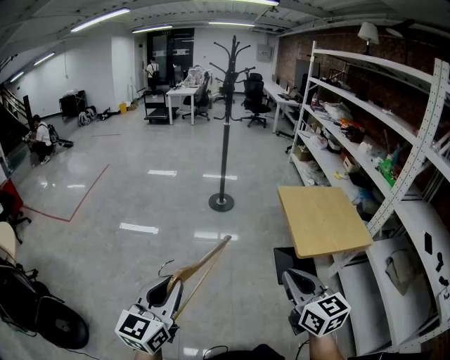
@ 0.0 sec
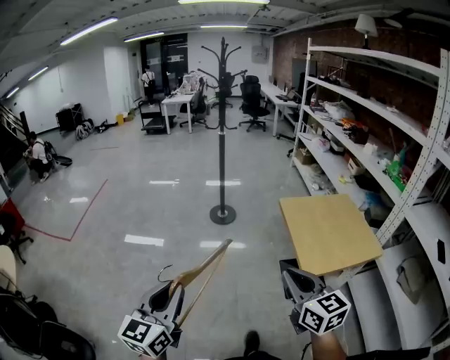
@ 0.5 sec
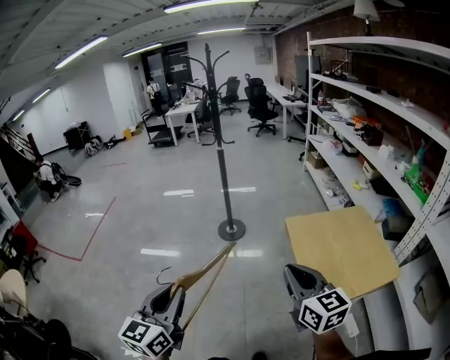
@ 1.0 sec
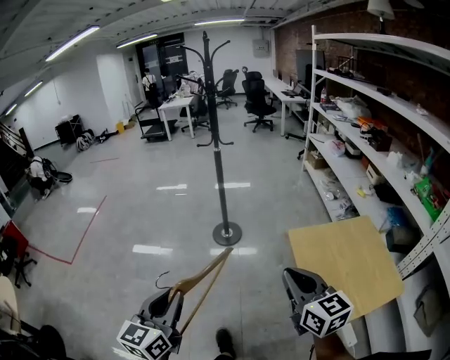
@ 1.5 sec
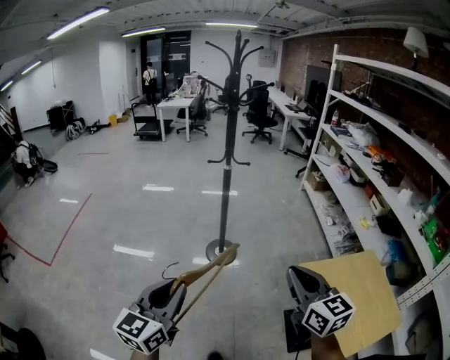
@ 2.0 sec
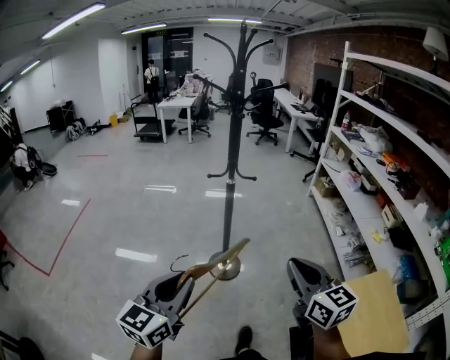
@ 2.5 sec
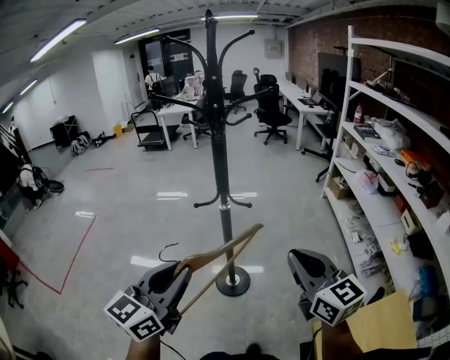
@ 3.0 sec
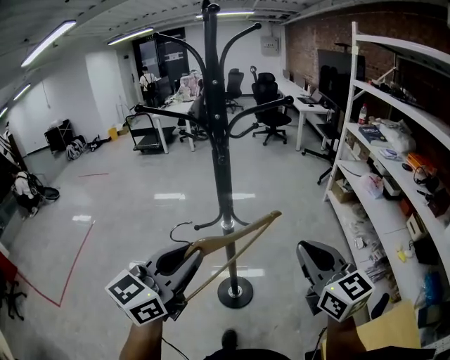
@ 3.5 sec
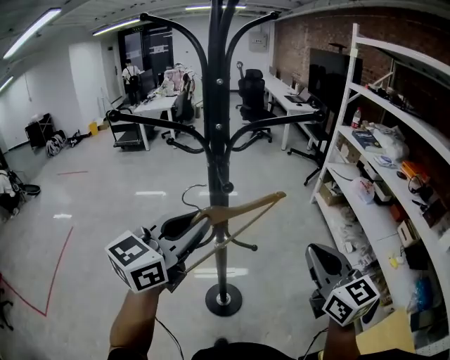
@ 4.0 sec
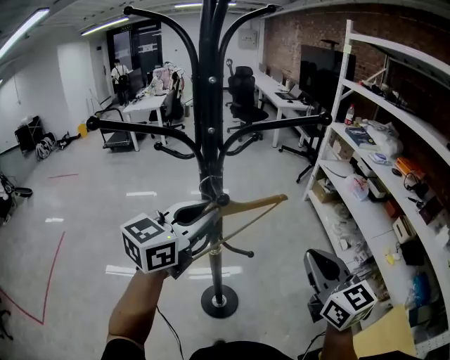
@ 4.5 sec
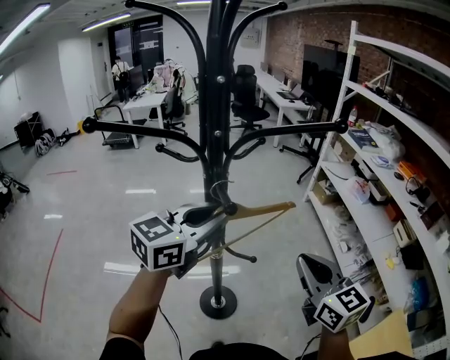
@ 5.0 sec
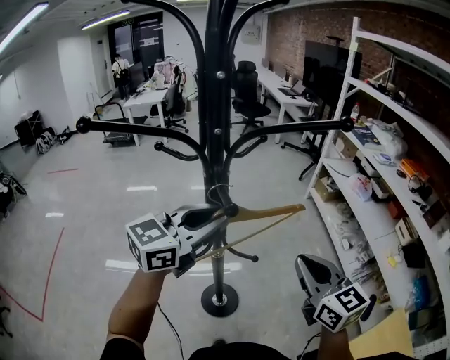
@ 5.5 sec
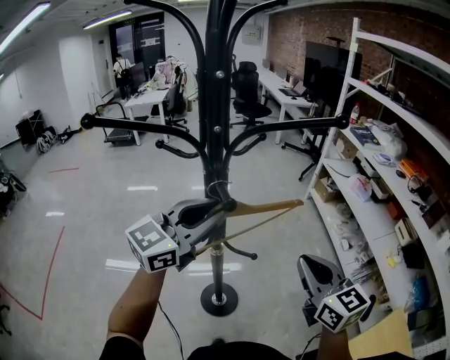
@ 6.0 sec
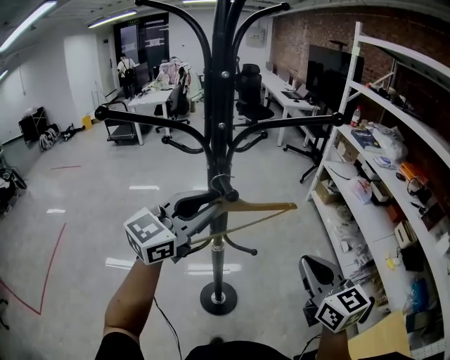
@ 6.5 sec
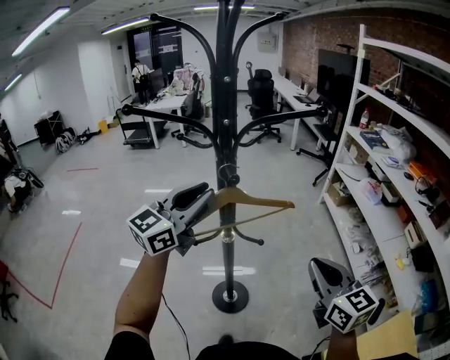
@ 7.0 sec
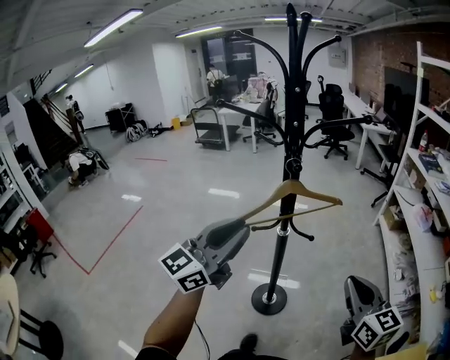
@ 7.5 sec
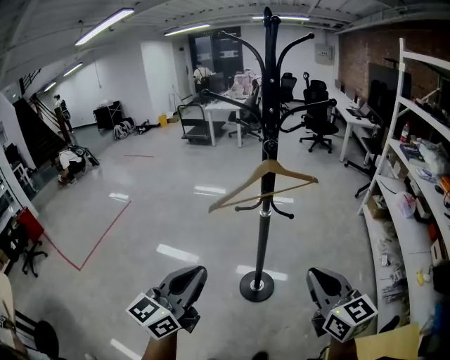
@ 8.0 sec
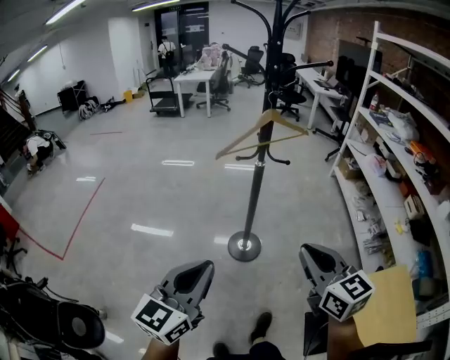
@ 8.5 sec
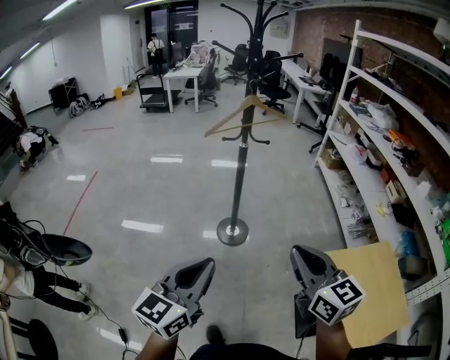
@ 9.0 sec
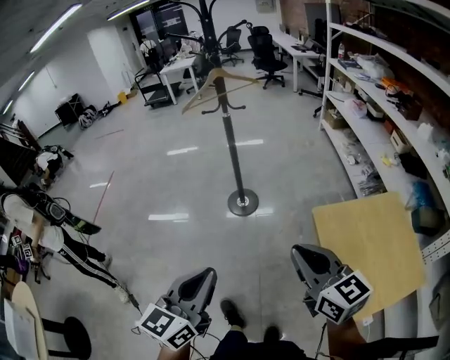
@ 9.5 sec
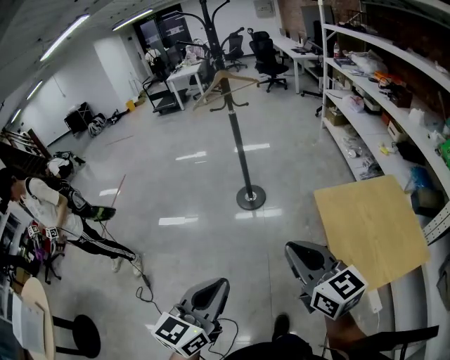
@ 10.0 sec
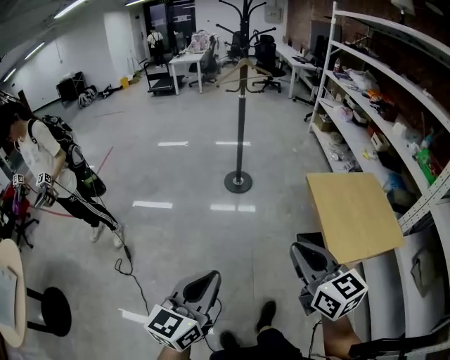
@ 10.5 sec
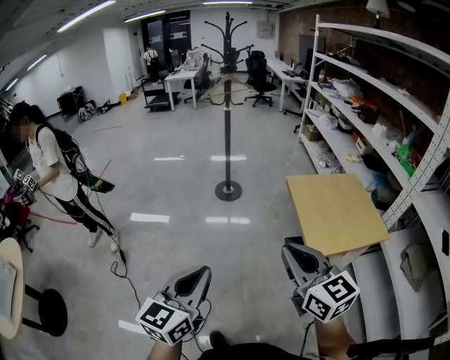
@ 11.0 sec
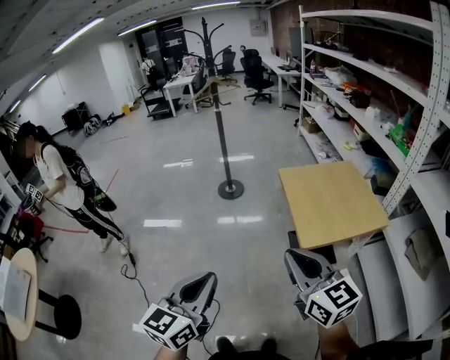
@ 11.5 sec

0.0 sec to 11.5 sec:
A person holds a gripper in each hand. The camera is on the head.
0.0 sec to 2.0 sec: The pair of grippers is taken forward, approximately 60 cm.
2.0 sec to 4.0 sec: The two grippers travel together, forward, some 60 cm. The left gripper turns by roughly 20 degrees.
4.0 sec to 6.0 sec: The right gripper shifts by roughly 5 cm; the left gripper shifts about 10 cm forward.
6.0 sec to 7.5 sec: The left gripper goes roughly 20 cm backward, and changes its angle by approximately 30 degrees. The right gripper shifts approximately 10 cm backward.
7.5 sec to 9.5 sec: The two grippers travel together, backward, roughly 50 cm. The left gripper swivels some 30 degrees.
9.5 sec to 11.5 sec: The two grippers travel together, backward, approximately 40 cm.

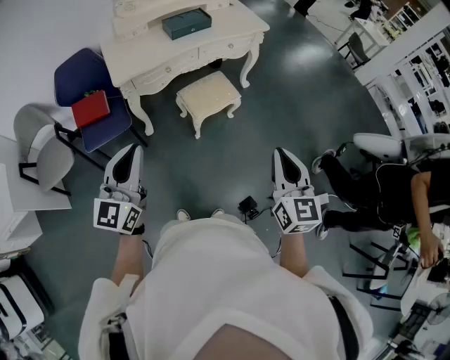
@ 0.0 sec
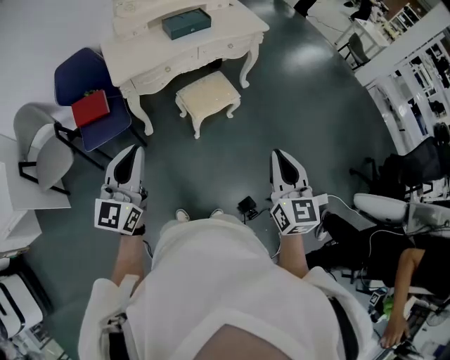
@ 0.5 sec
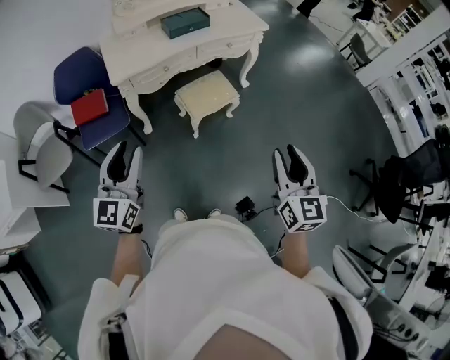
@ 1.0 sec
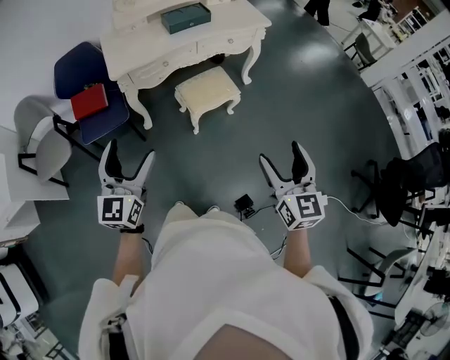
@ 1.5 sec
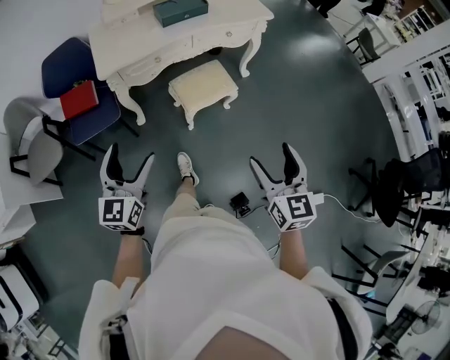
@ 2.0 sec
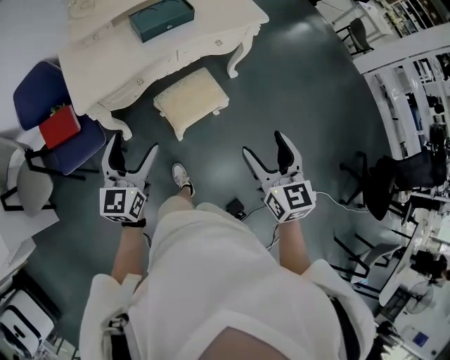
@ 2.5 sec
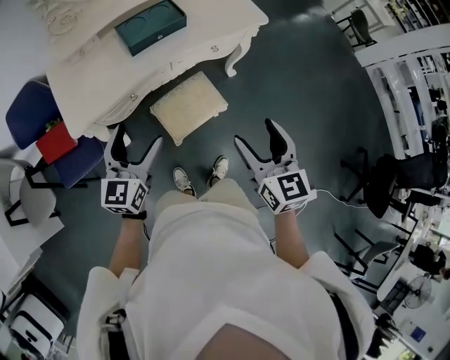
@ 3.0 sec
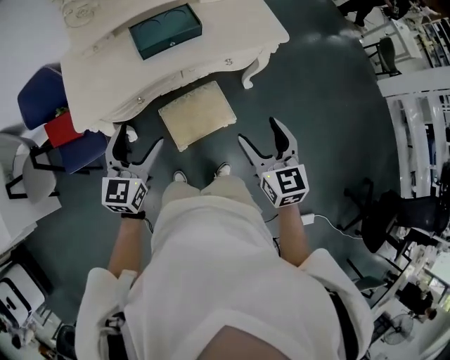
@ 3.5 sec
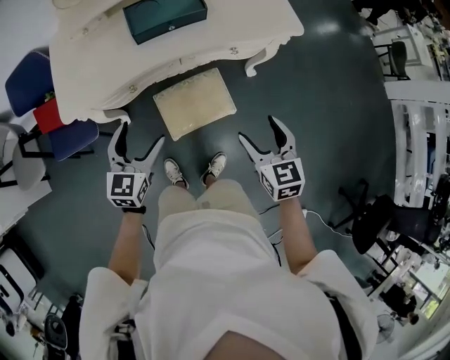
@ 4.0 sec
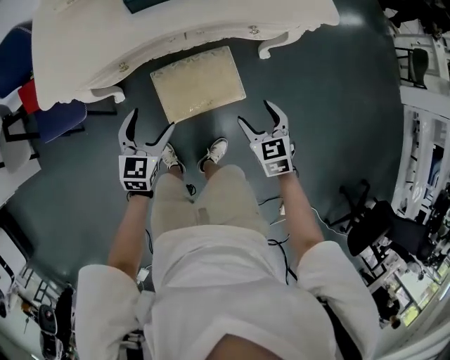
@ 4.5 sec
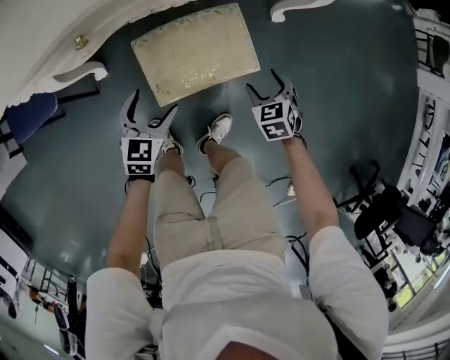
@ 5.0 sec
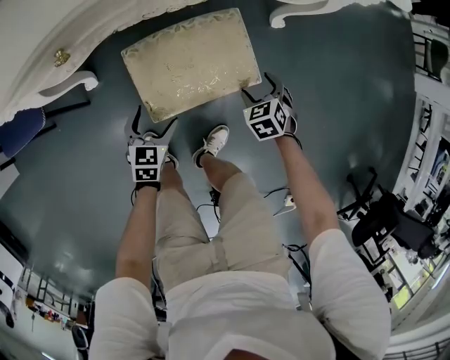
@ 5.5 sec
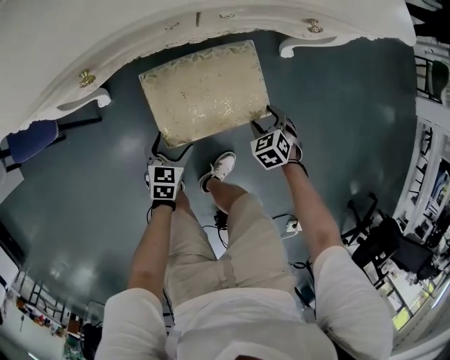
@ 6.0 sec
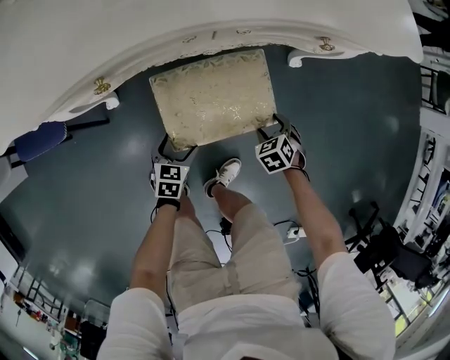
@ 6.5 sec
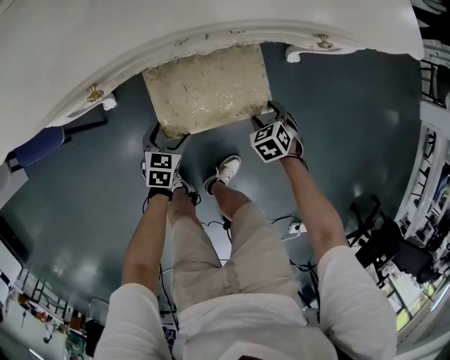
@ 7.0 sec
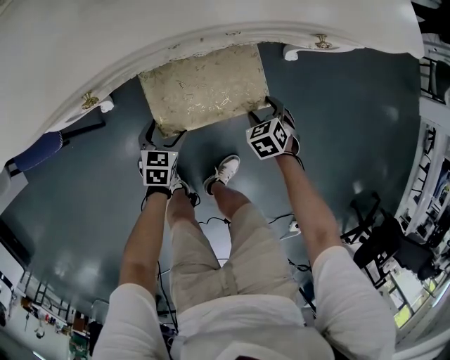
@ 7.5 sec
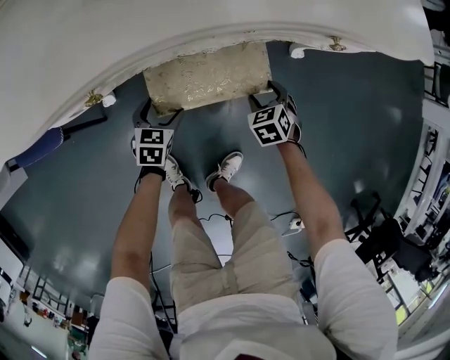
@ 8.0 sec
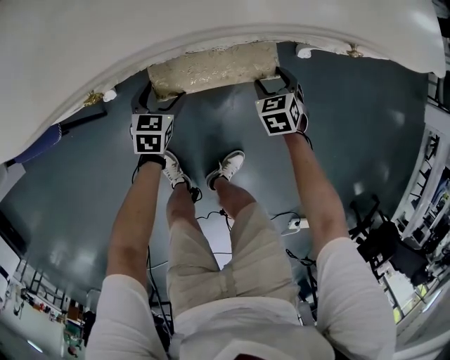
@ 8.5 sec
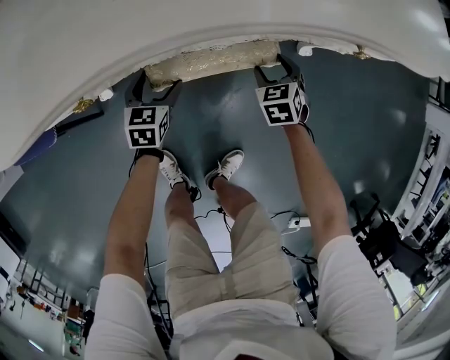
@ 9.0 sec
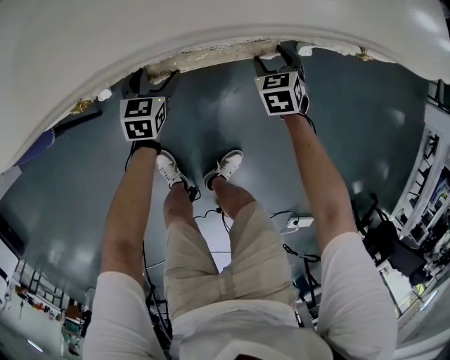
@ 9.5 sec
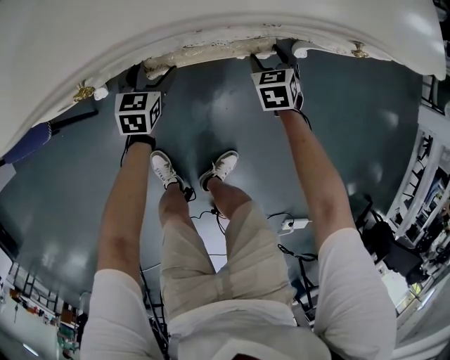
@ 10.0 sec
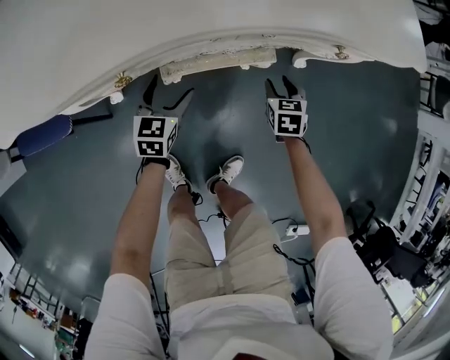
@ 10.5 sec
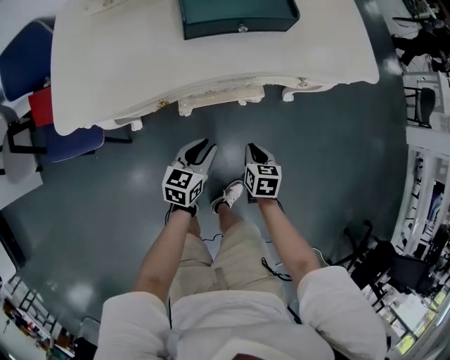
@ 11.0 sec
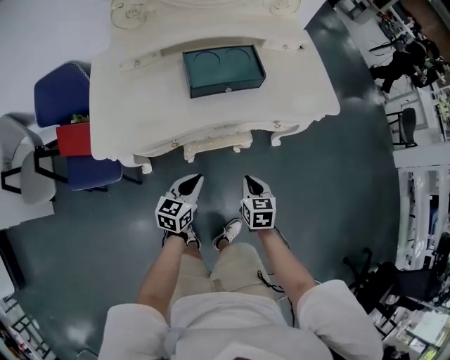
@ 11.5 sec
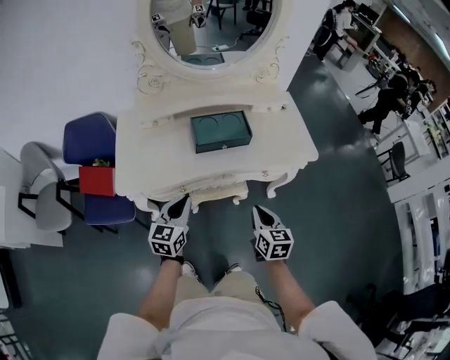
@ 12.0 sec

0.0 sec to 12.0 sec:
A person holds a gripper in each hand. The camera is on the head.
0.0 sec to 2.0 sec: The left gripper moves downward and forward, roughly 10 cm, and opens up. The right gripper travels forward and downward by some 10 cm, and opens its fingers.
2.0 sec to 4.0 sec: The grippers both shift forward by roughly 40 cm. The right gripper turns by approximately 20 degrees.
4.0 sec to 6.0 sec: The grippers both shift downward by about 50 cm. The left gripper swivels roughly 30 degrees; the right gripper tilts its fingers some 40 degrees downward.
6.0 sec to 8.0 sec: Both grippers travel together forward and to the left, some 15 cm.
8.0 sec to 10.0 sec: Both grippers travel together forward, approximately 10 cm.
10.0 sec to 12.0 sec: The left gripper moves upward, roughly 50 cm, changes its angle by some 30 degrees, and closes; the right gripper is displaced upward and backward by about 50 cm, rotates about 40 degrees, and closes.

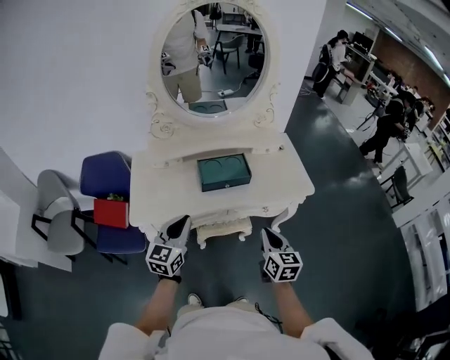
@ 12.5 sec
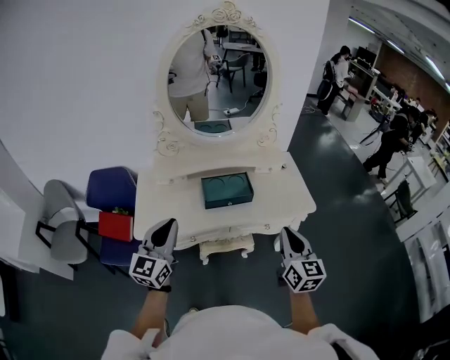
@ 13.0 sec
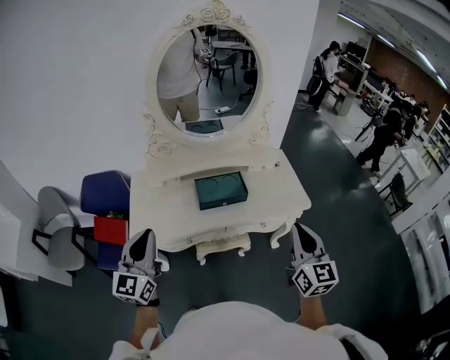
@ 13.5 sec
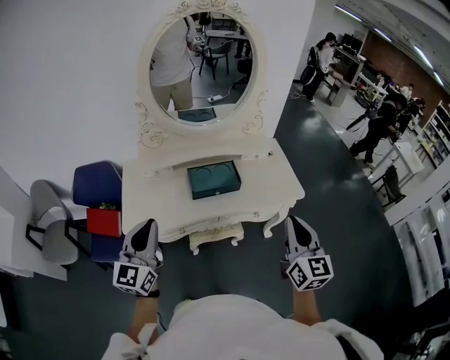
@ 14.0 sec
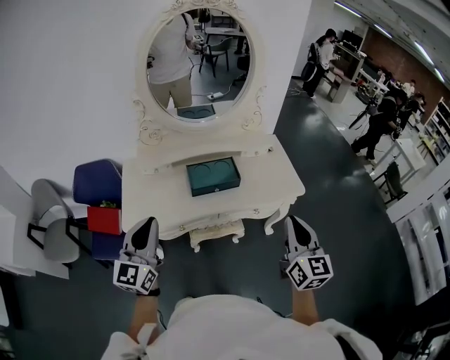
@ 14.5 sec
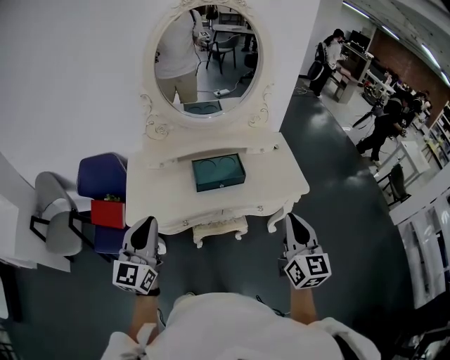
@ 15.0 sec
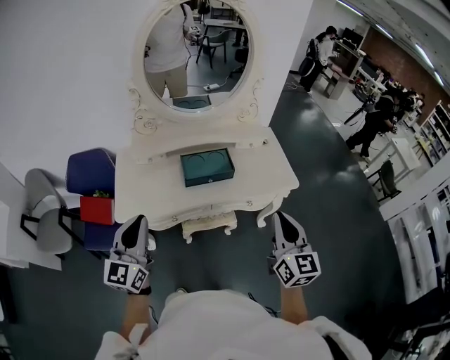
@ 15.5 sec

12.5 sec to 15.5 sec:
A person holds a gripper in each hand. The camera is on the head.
12.5 sec to 14.0 sec: The left gripper shifts roughly 15 cm upward and to the left. The right gripper goes roughly 20 cm upward, and swivels some 20 degrees.
14.0 sec to 15.5 sec: The grippers make only small movements.
